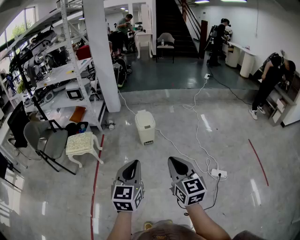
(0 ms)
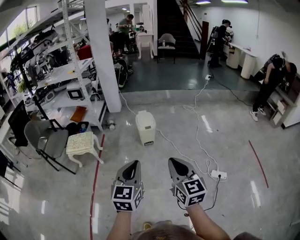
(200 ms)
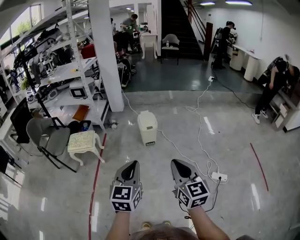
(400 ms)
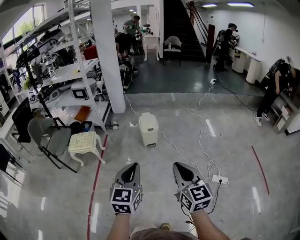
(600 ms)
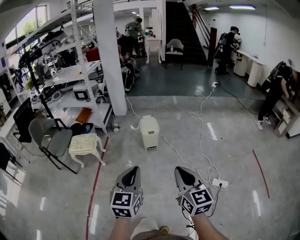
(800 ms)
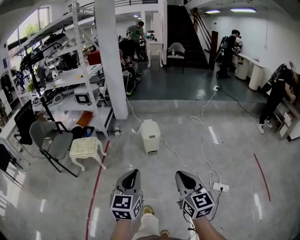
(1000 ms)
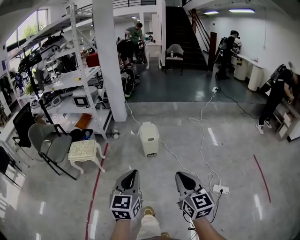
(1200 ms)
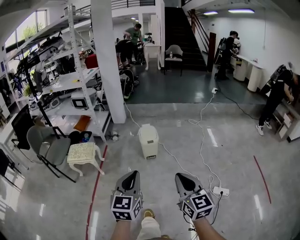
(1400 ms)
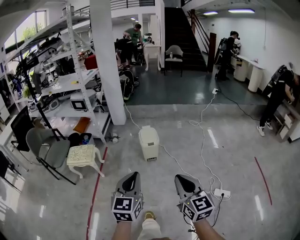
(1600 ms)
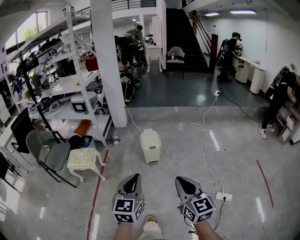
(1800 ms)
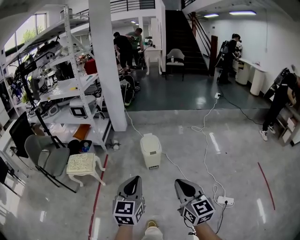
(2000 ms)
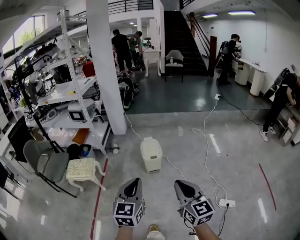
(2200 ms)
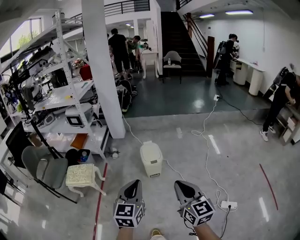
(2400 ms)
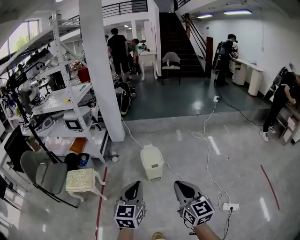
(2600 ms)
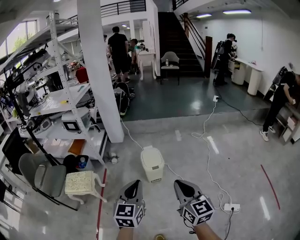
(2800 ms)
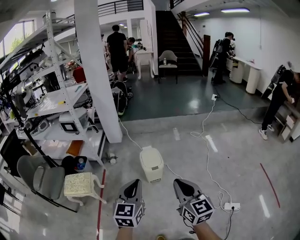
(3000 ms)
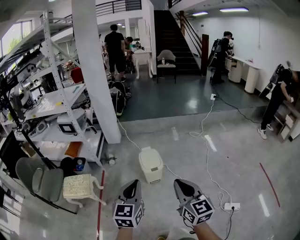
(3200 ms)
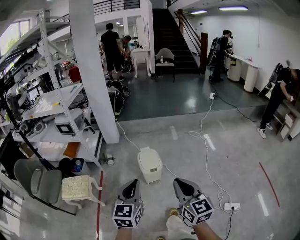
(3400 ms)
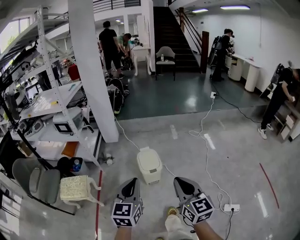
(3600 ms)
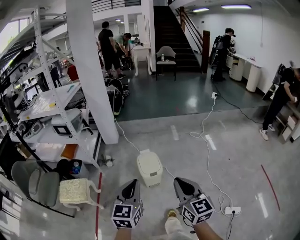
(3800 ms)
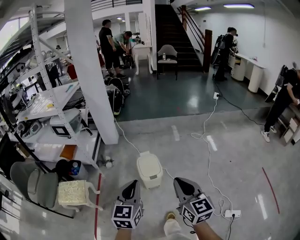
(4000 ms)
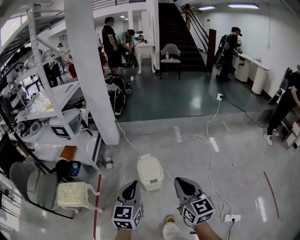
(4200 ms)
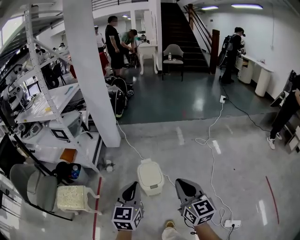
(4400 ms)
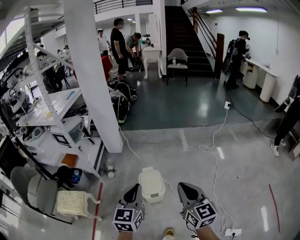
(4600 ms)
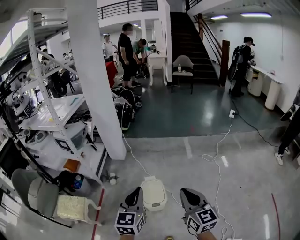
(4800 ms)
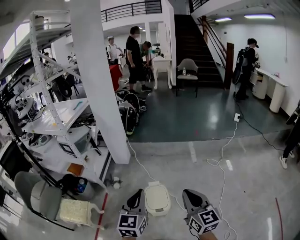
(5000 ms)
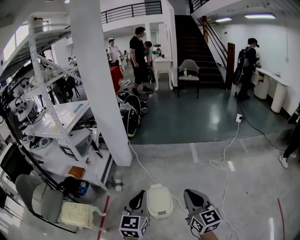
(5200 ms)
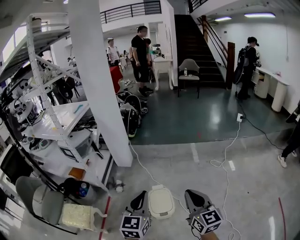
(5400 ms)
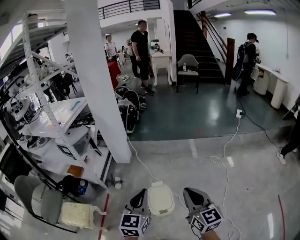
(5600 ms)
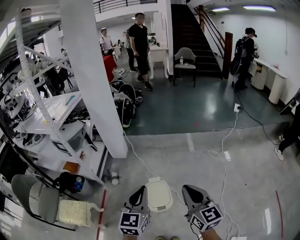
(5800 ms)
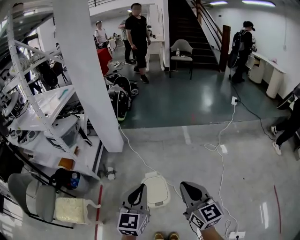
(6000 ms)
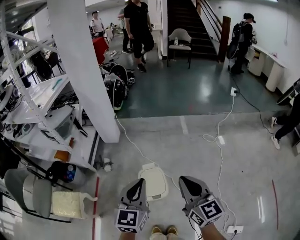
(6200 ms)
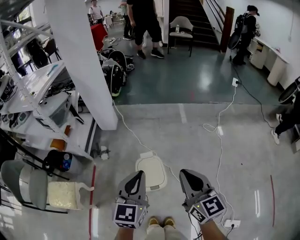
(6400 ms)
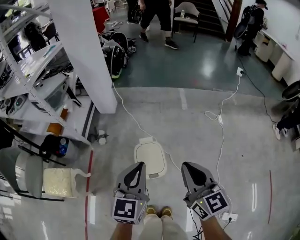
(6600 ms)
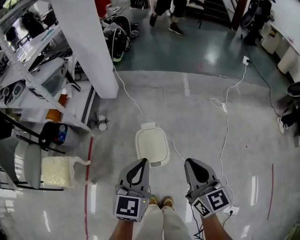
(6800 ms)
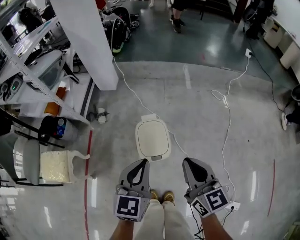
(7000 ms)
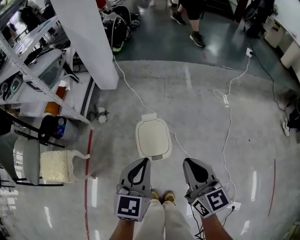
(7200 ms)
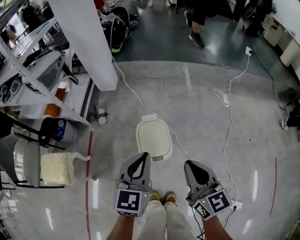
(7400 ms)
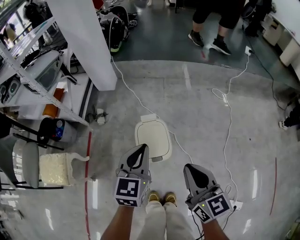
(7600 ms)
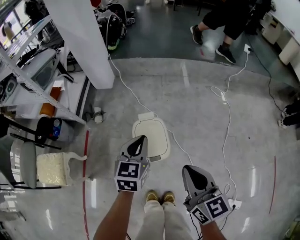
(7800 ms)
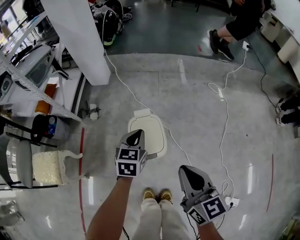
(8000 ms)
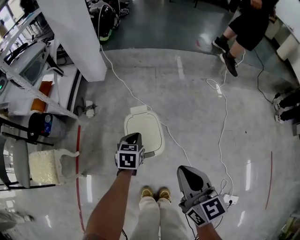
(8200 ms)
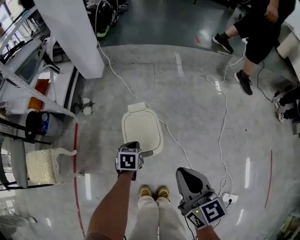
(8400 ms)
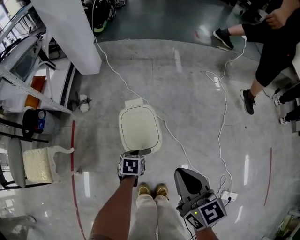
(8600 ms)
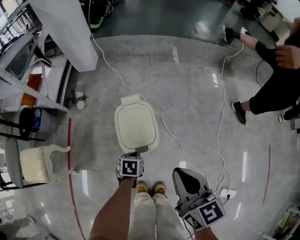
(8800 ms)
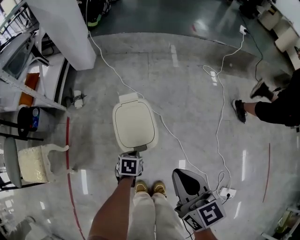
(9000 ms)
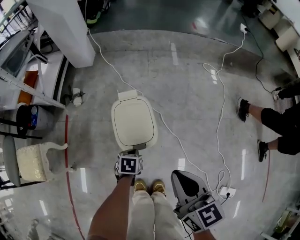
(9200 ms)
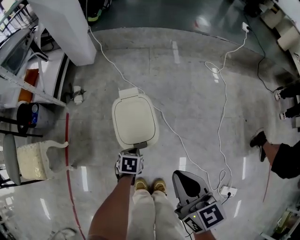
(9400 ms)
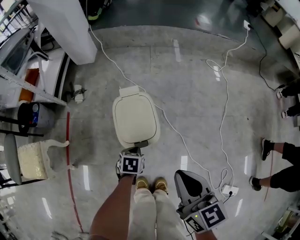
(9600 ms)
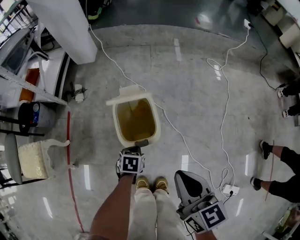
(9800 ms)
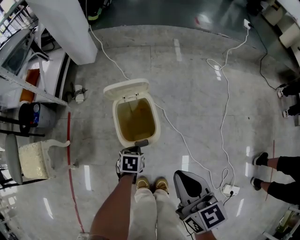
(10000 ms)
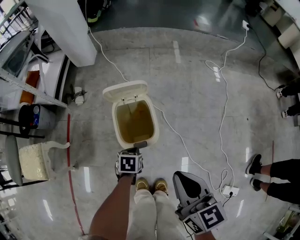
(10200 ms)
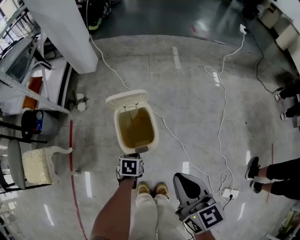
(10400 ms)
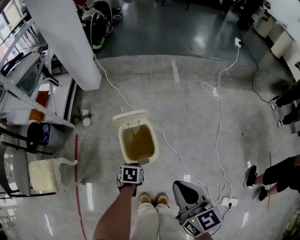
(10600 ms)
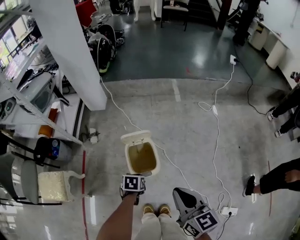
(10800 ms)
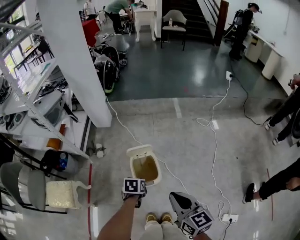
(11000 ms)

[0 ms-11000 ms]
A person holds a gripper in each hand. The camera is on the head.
0 ms to 1600 ms: Both grippers travel together forward, roughly 5 cm.
1600 ms to 3200 ms: The grippers both shift forward by about 25 cm.
3200 ms to 4800 ms: The grippers both shift forward by about 30 cm.
4800 ms to 6200 ms: The right gripper is displaced forward by some 10 cm, while the left gripper shifts approximately 10 cm forward and downward.
6200 ms to 7800 ms: Both grippers travel together downward, about 20 cm.
7800 ms to 9400 ms: The right gripper goes about 10 cm downward. Meanwhile the left gripper shifts approximately 35 cm downward, and tilts its fingers some 40 degrees downward.
9400 ms to 11000 ms: Both grippers move upward, about 25 cm.

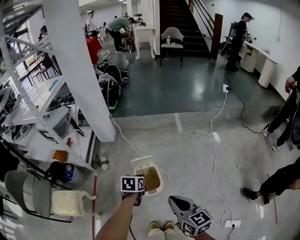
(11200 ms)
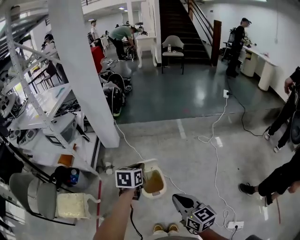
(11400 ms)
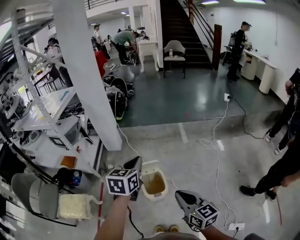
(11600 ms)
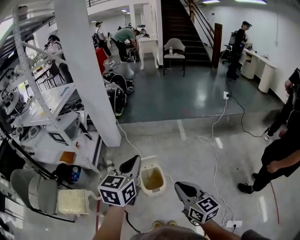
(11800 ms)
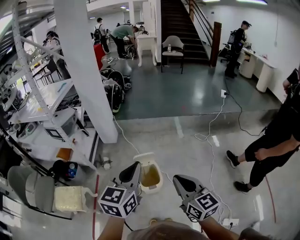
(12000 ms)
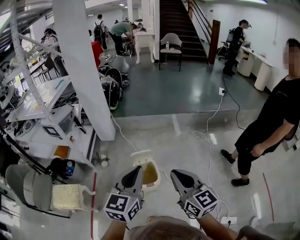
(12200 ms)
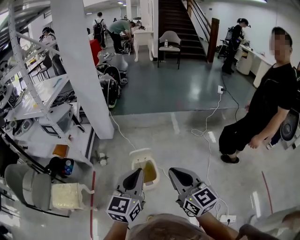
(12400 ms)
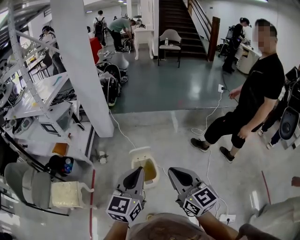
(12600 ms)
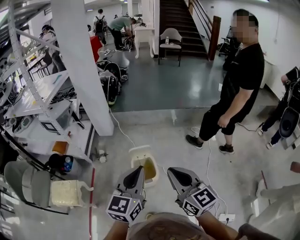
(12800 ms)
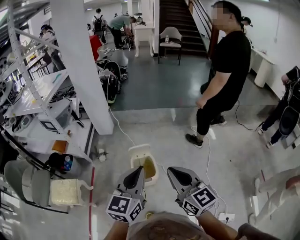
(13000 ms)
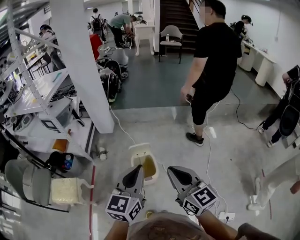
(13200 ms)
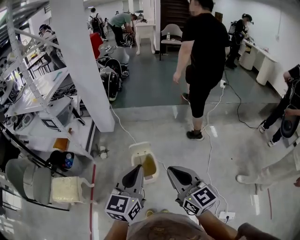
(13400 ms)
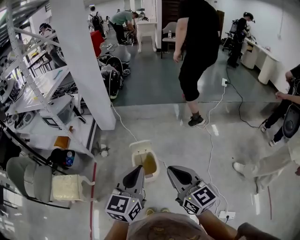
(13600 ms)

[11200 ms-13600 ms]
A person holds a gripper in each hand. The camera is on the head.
11200 ms to 12400 ms: The left gripper travels upward and backward by approximately 30 cm, and points its fingers approximately 40 degrees further upward, while the right gripper heads upward, covering some 15 cm.
12400 ms to 13600 ms: The grippers make only small movements.

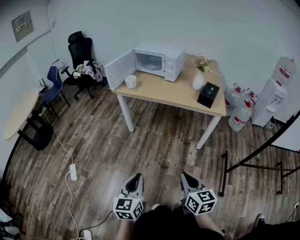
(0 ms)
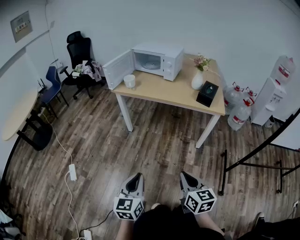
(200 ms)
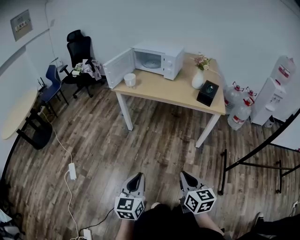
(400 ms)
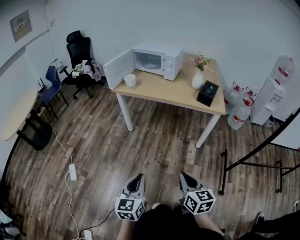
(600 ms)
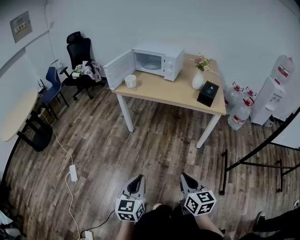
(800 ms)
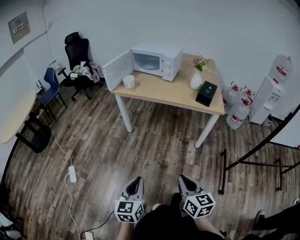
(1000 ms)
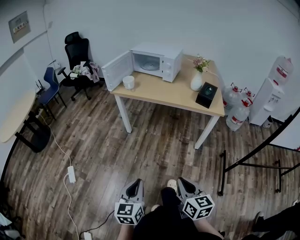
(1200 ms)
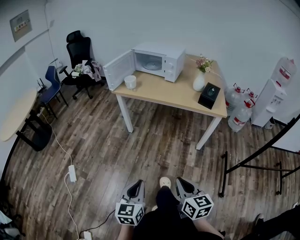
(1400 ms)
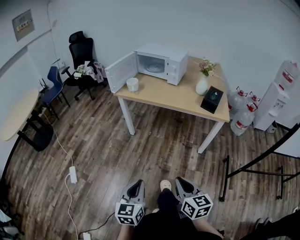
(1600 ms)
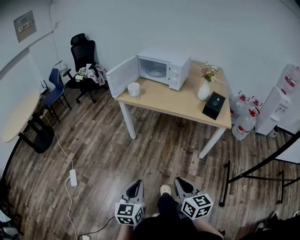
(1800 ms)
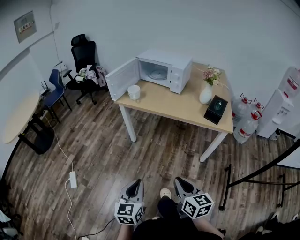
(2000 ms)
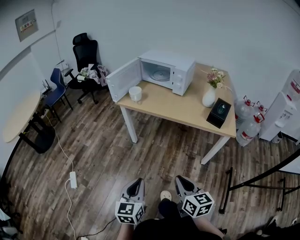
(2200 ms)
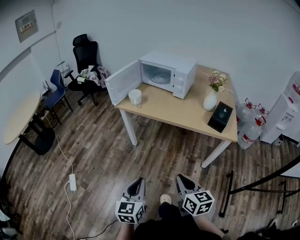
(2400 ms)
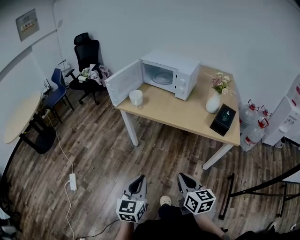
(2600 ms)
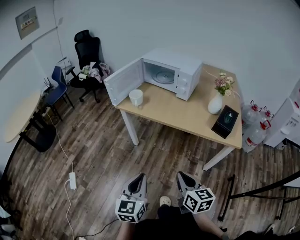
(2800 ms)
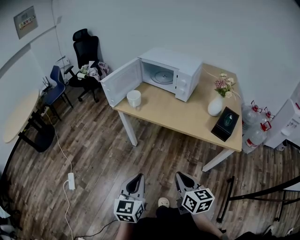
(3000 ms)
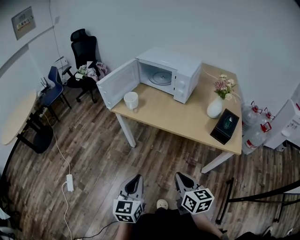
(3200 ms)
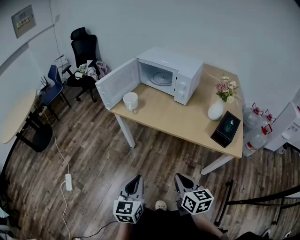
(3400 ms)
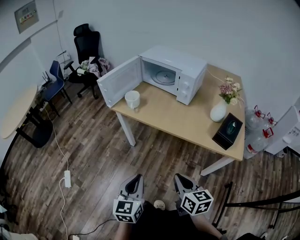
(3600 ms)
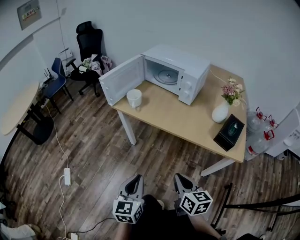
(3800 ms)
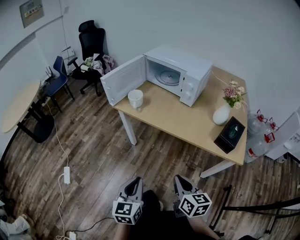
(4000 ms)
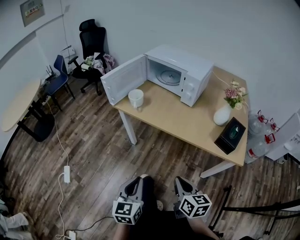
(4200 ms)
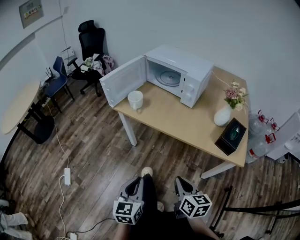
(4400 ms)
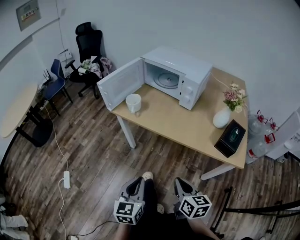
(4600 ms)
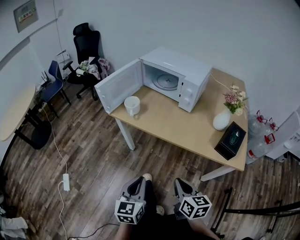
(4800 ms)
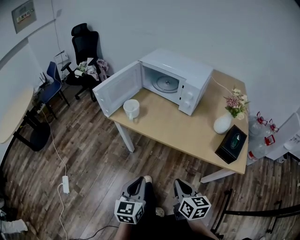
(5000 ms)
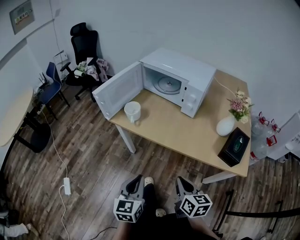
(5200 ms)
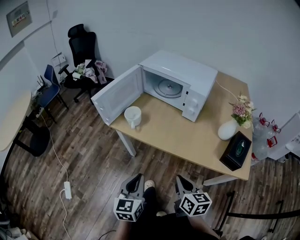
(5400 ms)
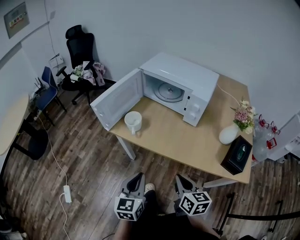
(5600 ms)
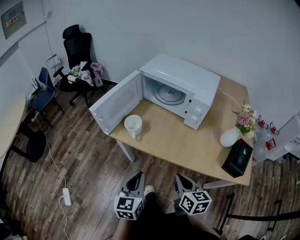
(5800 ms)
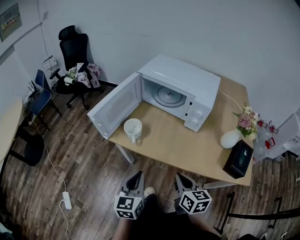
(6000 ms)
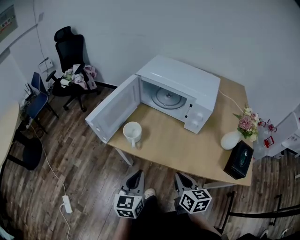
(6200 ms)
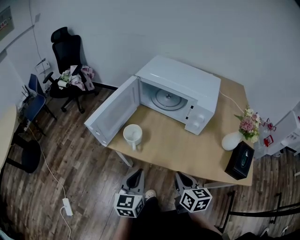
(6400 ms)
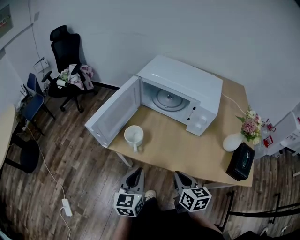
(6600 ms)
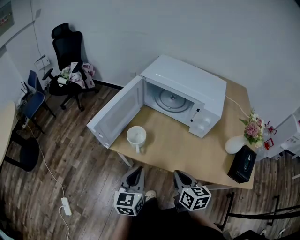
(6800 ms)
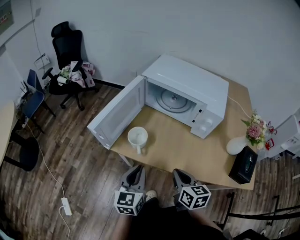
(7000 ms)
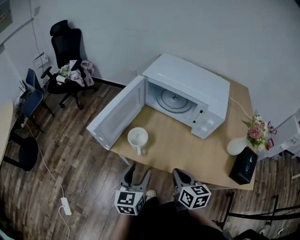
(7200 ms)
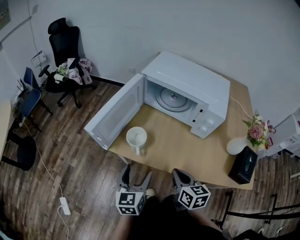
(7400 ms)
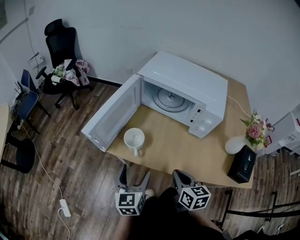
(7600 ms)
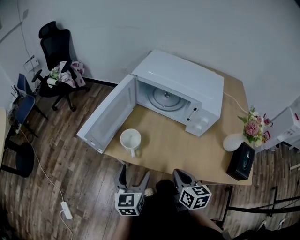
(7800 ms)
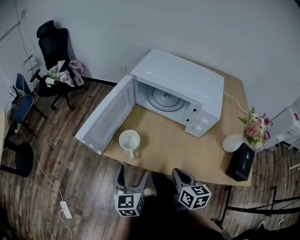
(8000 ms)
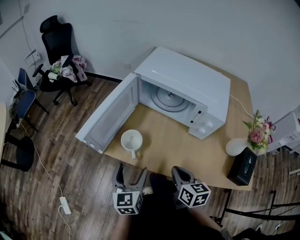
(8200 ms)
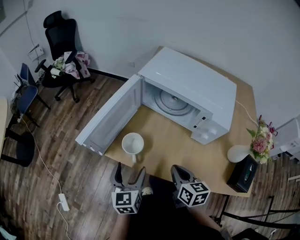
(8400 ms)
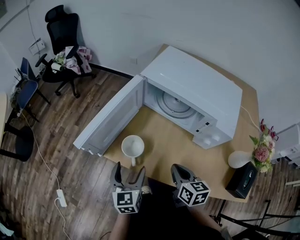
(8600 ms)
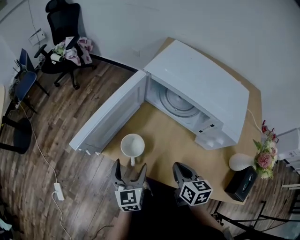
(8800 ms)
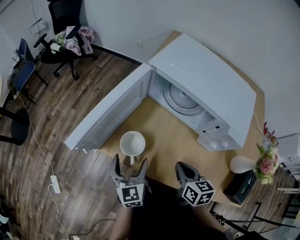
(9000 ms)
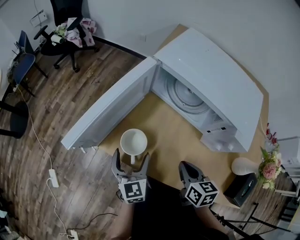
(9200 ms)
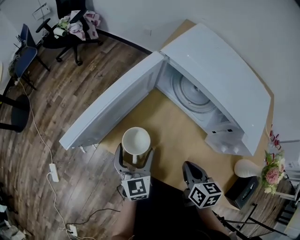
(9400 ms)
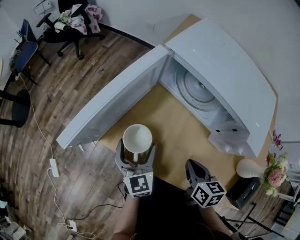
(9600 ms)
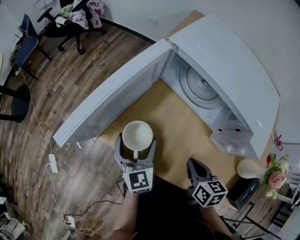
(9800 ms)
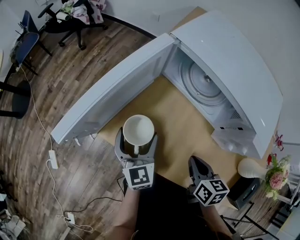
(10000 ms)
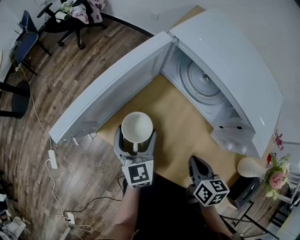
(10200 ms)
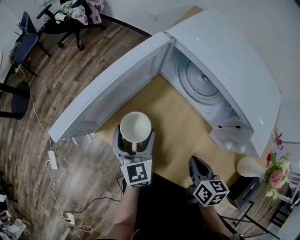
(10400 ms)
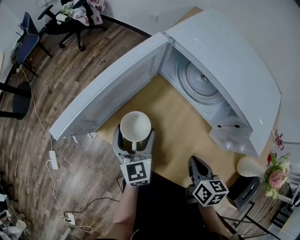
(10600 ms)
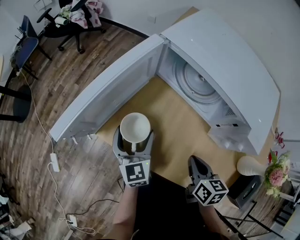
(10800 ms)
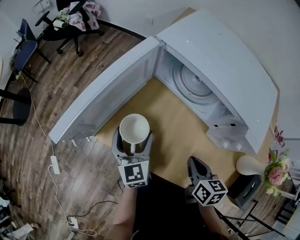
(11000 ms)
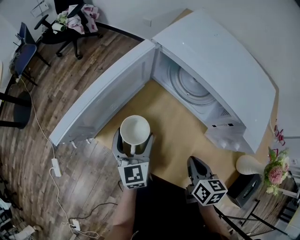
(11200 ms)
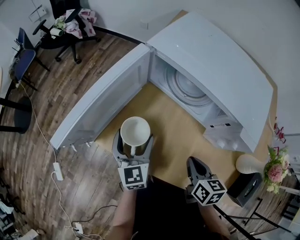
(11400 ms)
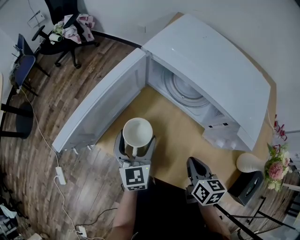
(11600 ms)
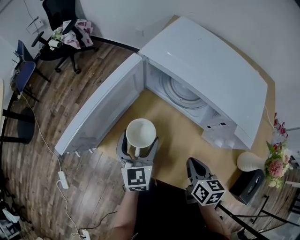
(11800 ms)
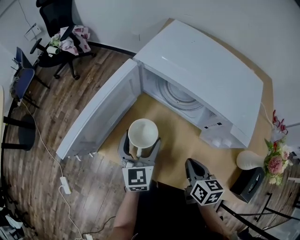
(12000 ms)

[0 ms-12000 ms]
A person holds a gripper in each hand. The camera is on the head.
0 ms to 1600 ms: The grippers stay close to where they were, moving slightly.
1600 ms to 3000 ms: The grippers both shift forward by roughly 25 cm.
3000 ms to 4400 ms: The two grippers go some 5 cm forward.
4400 ms to 6000 ms: The grippers both shift forward by some 25 cm.
6000 ms to 7600 ms: The two grippers go approximately 10 cm forward. The left gripper opens.
7600 ms to 9000 ms: The right gripper goes about 10 cm forward, while the left gripper heads forward and downward, covering about 10 cm.
9000 ms to 10400 ms: The left gripper travels forward by approximately 5 cm. Meanwhile the right gripper changes place by approximately 5 cm.
10400 ms to 12000 ms: The left gripper shifts about 10 cm to the right and upward.
